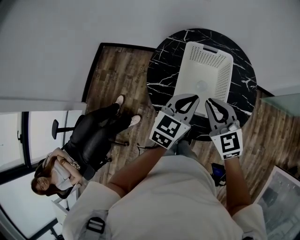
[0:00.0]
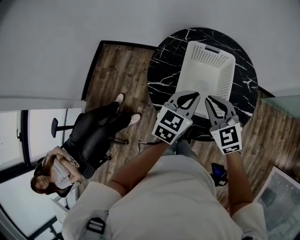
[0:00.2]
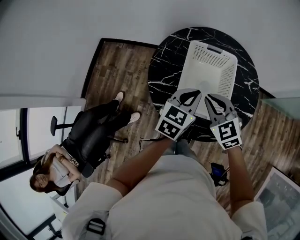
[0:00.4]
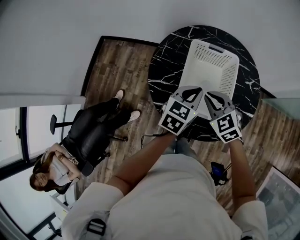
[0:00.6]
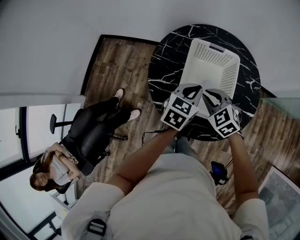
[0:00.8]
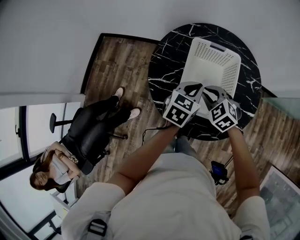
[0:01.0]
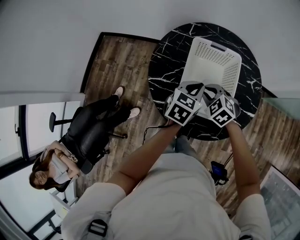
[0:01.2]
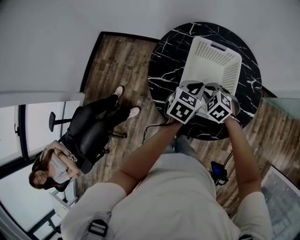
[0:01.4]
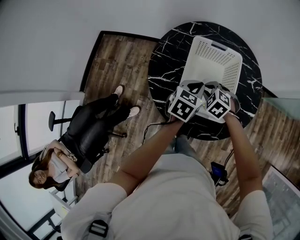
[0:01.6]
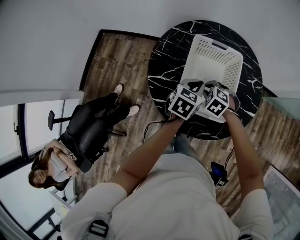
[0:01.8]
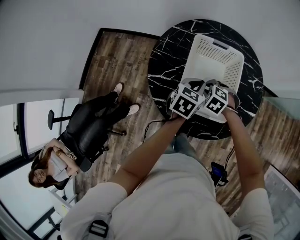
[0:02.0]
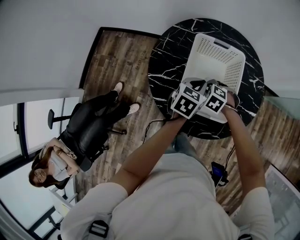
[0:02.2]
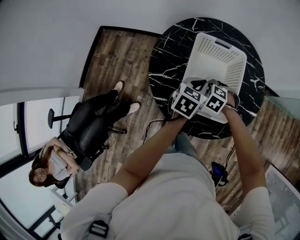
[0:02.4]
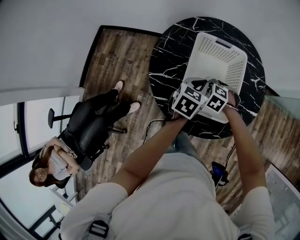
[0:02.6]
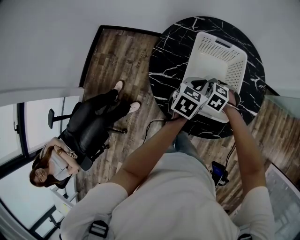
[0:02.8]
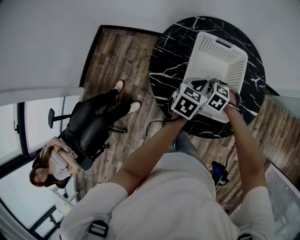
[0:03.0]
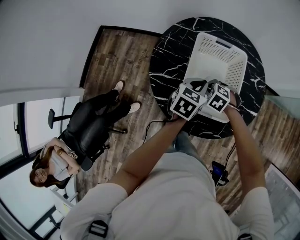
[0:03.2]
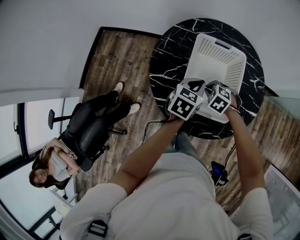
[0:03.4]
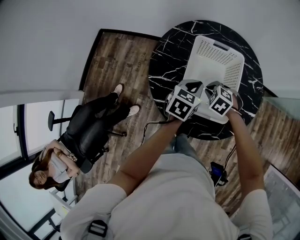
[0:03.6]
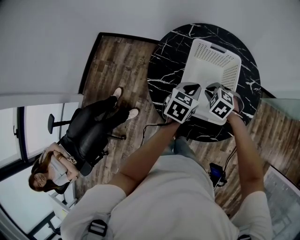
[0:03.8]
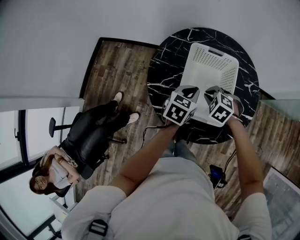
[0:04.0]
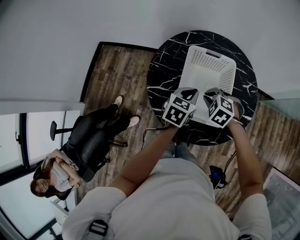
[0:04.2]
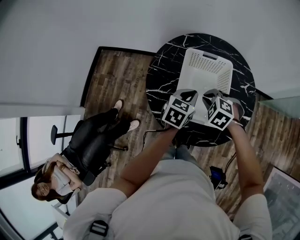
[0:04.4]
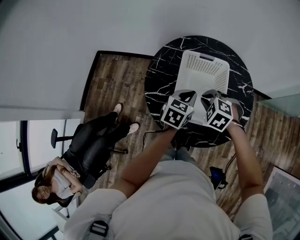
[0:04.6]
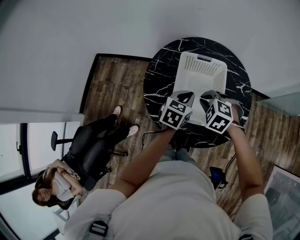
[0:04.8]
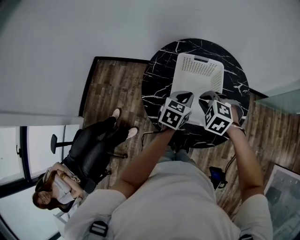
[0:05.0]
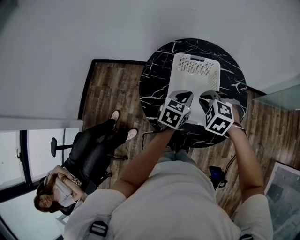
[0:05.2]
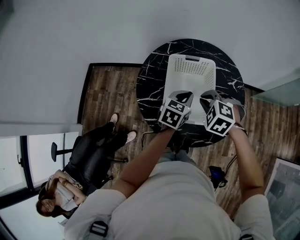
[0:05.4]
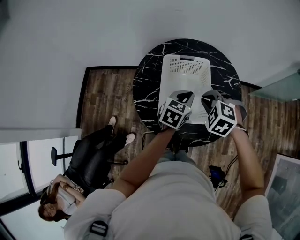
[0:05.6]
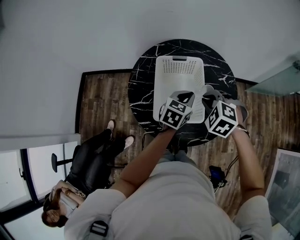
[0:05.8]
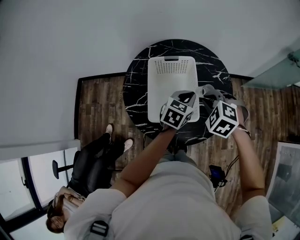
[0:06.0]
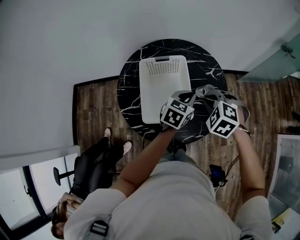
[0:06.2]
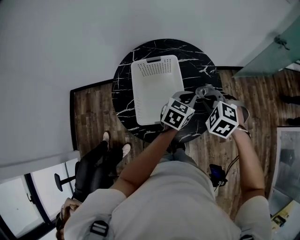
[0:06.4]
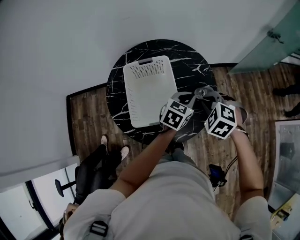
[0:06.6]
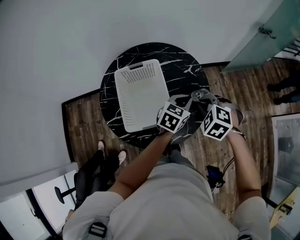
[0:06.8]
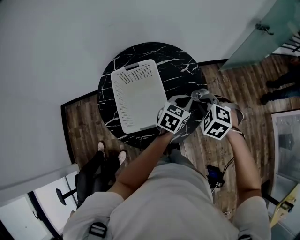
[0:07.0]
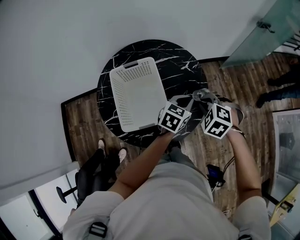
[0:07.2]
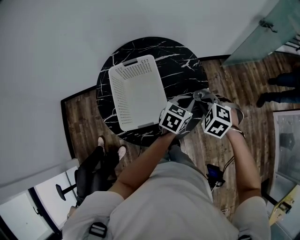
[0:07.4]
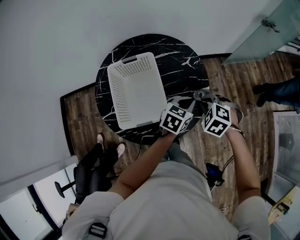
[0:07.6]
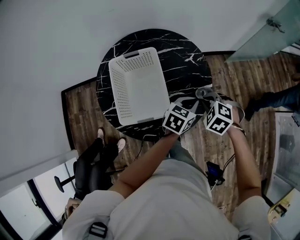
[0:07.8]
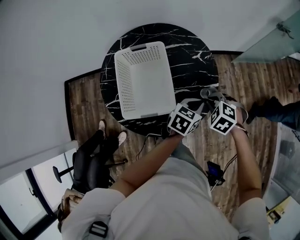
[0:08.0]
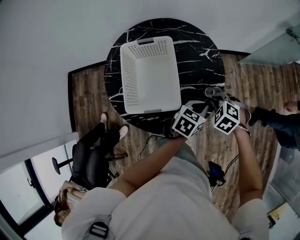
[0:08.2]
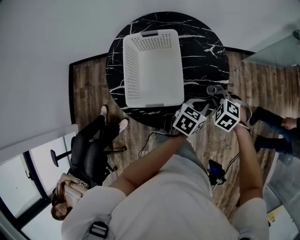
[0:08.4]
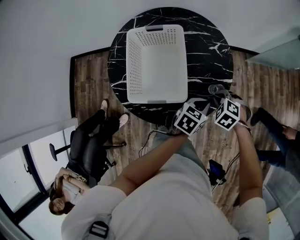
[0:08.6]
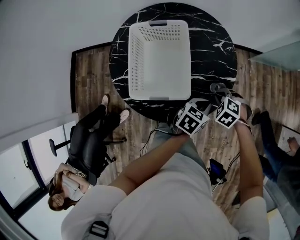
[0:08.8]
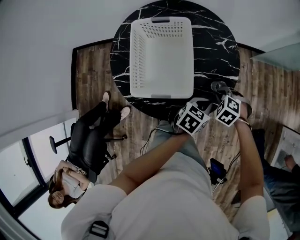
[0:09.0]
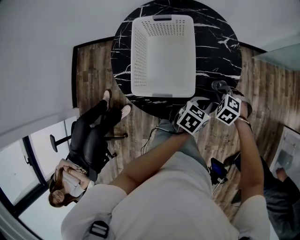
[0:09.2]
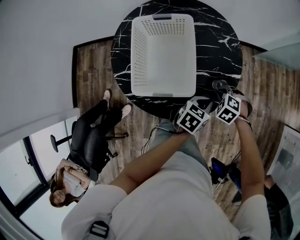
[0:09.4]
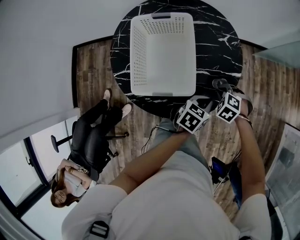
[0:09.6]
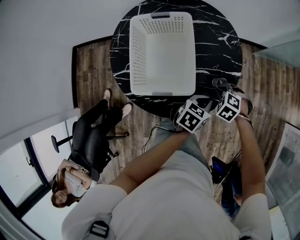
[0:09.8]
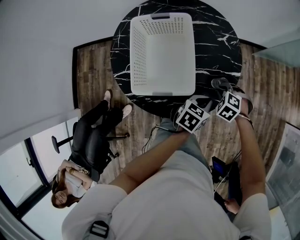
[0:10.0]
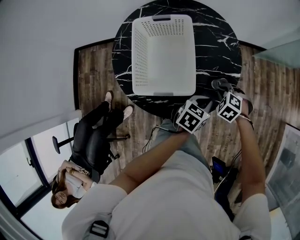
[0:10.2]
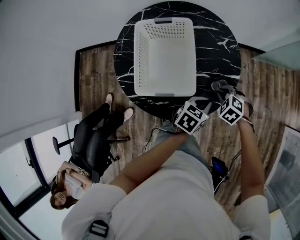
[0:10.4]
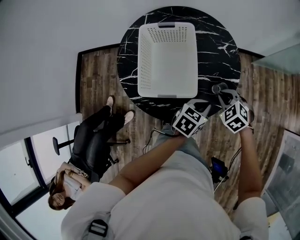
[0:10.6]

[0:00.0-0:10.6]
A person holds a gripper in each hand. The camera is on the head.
0:00.0 to 0:01.6: The left gripper goes approximately 15 cm downward and forward; the right gripper is displaced downward by some 20 cm, and angles its fingers downward, by approximately 40 degrees.
0:01.6 to 0:03.0: The right gripper shifts some 5 cm downward.
0:03.0 to 0:04.6: The right gripper moves upward, about 15 cm.
0:04.6 to 0:06.0: The right gripper shifts about 15 cm to the right and upward. Meanwhile the left gripper moves to the right, approximately 15 cm.
0:06.0 to 0:07.6: The left gripper is displaced to the right by roughly 15 cm, while the right gripper heads to the right and downward, covering some 20 cm.
0:07.6 to 0:09.0: The left gripper travels downward and backward by approximately 10 cm; the right gripper moves downward, some 15 cm.
0:09.0 to 0:10.6: The right gripper goes approximately 5 cm upward; the left gripper ends up approximately 5 cm from where it was.

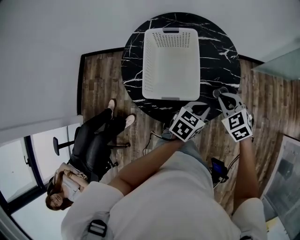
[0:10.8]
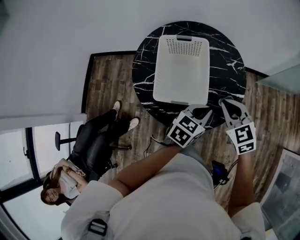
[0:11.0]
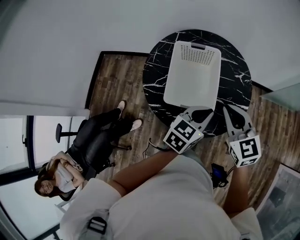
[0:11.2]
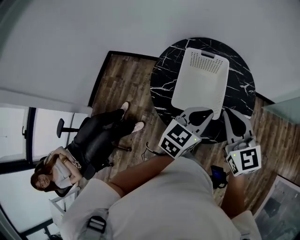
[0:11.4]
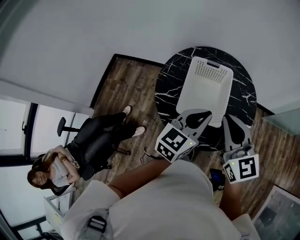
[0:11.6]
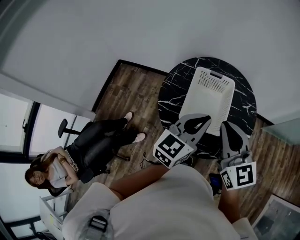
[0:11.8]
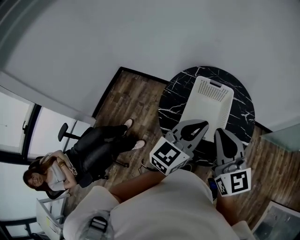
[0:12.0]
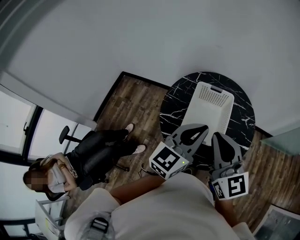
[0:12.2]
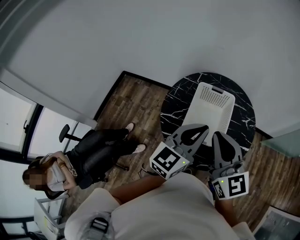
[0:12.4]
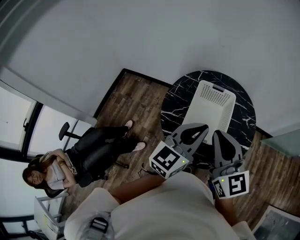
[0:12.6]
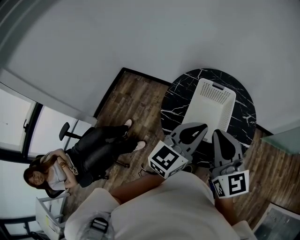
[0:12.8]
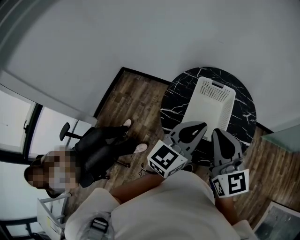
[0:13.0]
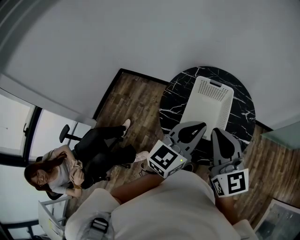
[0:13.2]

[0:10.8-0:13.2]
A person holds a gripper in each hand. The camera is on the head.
0:10.8 to 0:12.0: Both grippers travel together upward and to the left, approximately 35 cm. The right gripper angles its fingers upward, by about 50 degrees. The left gripper tips its fingers upward by roughly 30 degrees.
0:12.0 to 0:13.2: The grippers move only a little.

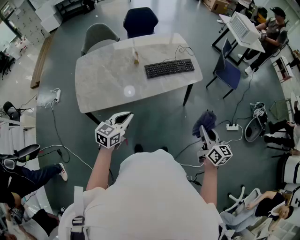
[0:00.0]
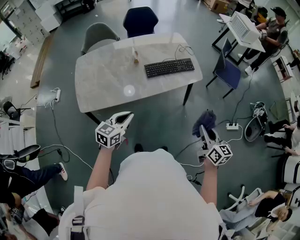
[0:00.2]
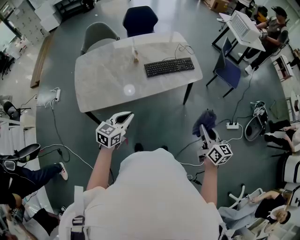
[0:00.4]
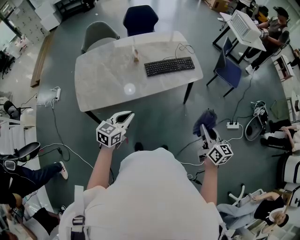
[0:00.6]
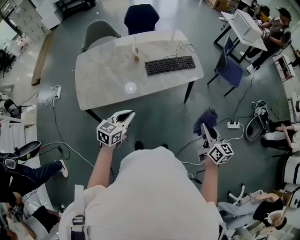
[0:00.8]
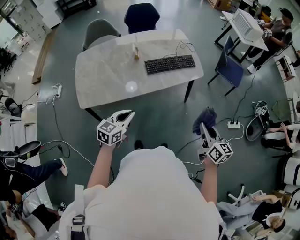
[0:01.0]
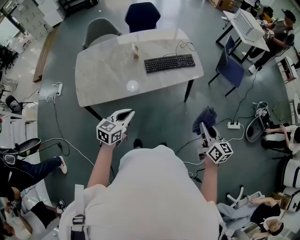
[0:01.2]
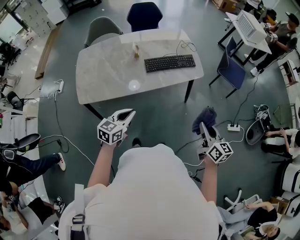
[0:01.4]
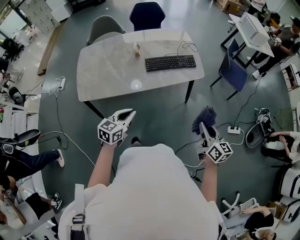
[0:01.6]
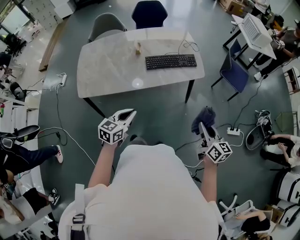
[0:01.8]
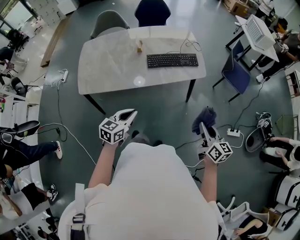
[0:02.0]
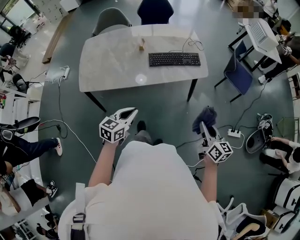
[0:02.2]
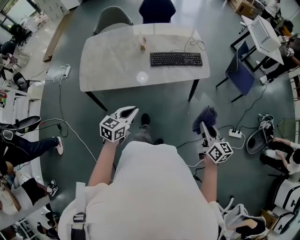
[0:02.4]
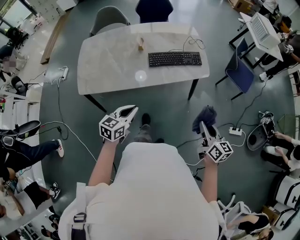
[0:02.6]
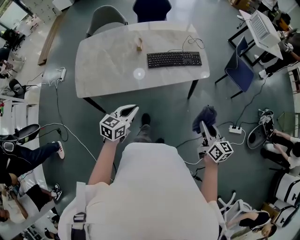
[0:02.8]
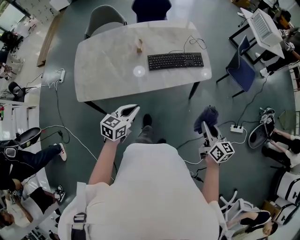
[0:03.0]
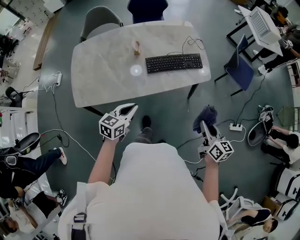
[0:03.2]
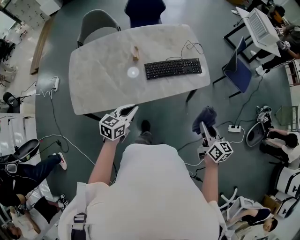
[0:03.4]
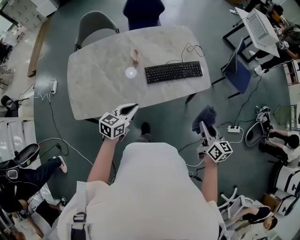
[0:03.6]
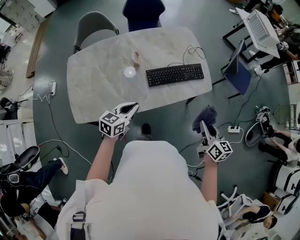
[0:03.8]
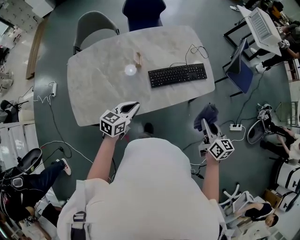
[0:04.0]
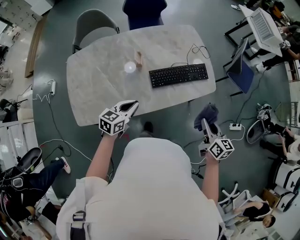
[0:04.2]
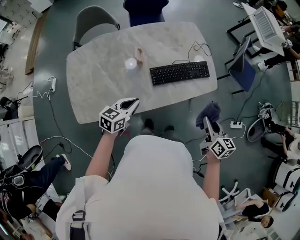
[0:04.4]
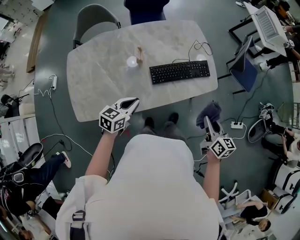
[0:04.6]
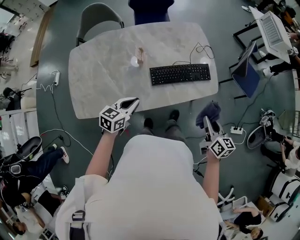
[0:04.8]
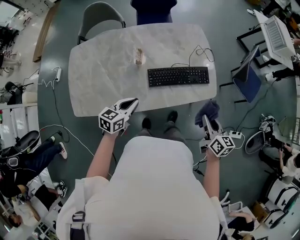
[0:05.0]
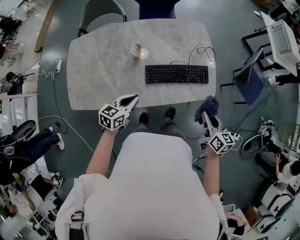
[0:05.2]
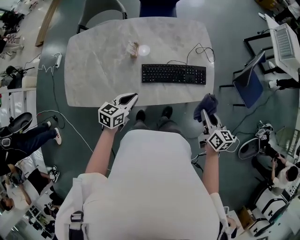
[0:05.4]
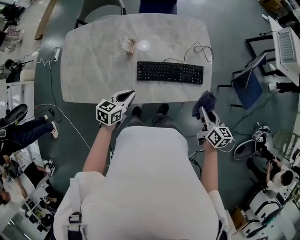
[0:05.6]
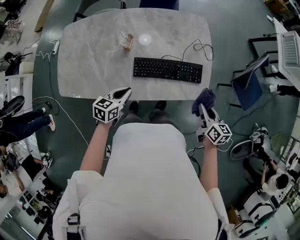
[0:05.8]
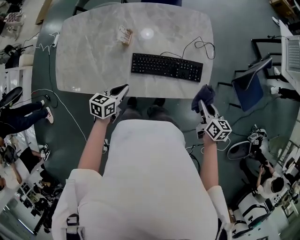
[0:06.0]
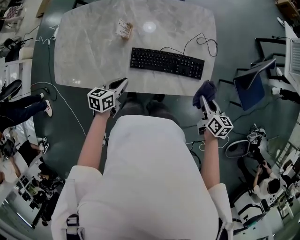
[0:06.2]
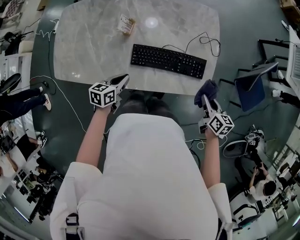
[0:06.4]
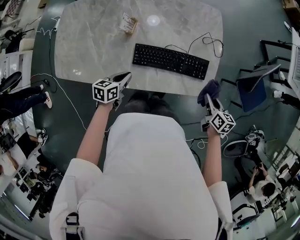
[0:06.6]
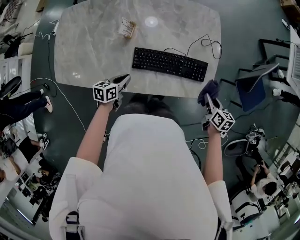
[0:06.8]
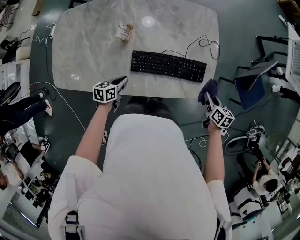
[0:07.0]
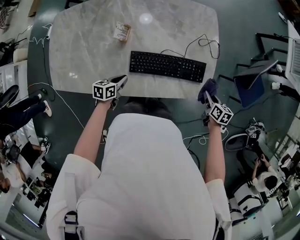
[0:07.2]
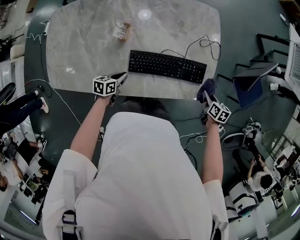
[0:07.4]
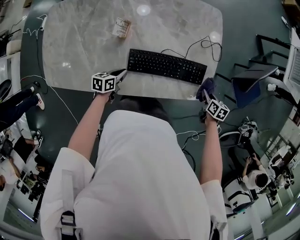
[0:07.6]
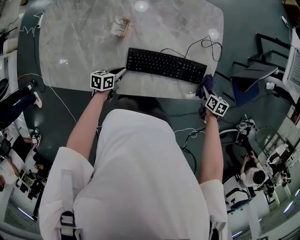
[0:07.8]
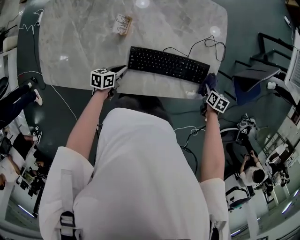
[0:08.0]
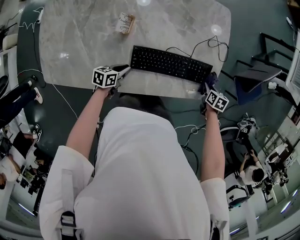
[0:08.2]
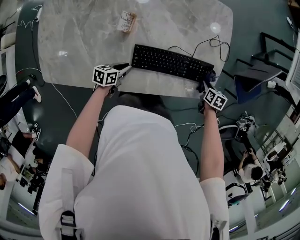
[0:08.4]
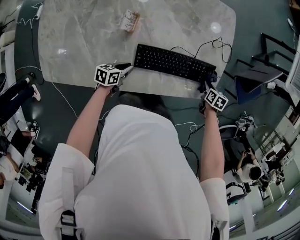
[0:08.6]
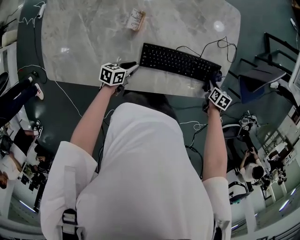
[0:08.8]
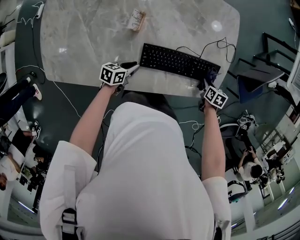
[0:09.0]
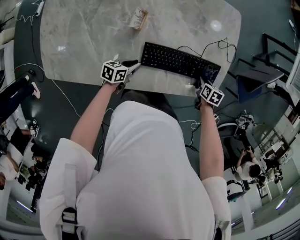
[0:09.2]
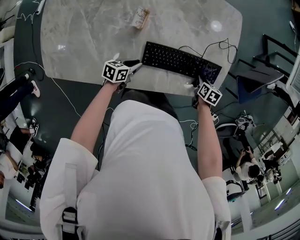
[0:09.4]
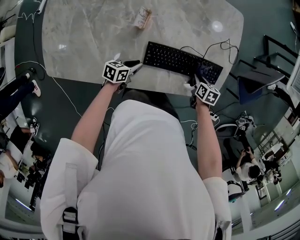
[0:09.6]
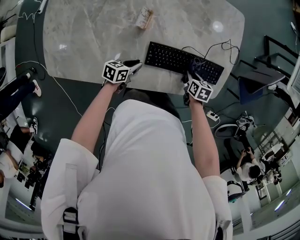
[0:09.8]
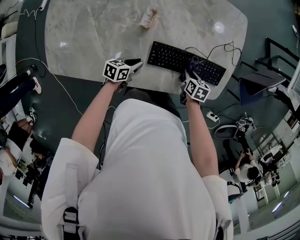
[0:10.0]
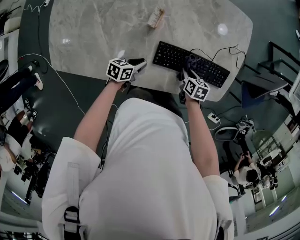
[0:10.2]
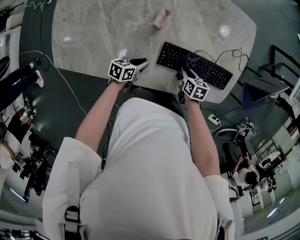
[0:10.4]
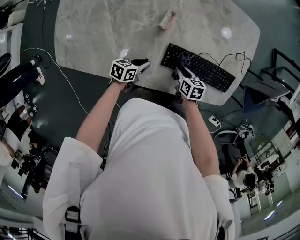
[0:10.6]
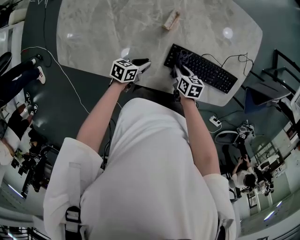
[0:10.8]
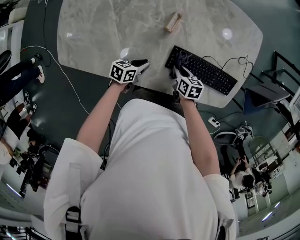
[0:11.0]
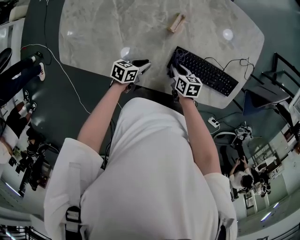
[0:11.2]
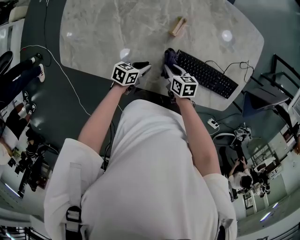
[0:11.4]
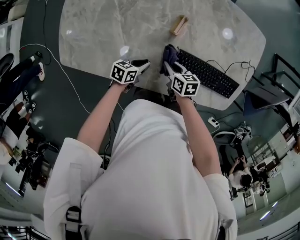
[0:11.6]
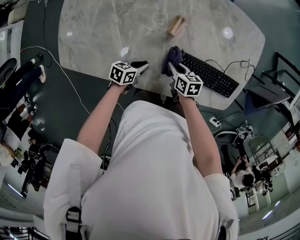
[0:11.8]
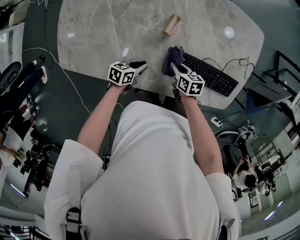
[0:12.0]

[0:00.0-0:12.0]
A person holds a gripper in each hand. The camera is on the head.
0:00.0 to 0:01.6: The right gripper changes place by roughly 5 cm. Meanwhile the left gripper moves to the right, about 5 cm.
0:01.6 to 0:03.0: The two grippers go some 10 cm forward.
0:03.0 to 0:04.4: The grippers both shift forward and to the left by some 20 cm.
0:04.4 to 0:06.0: The right gripper travels forward, to the right and downward by about 25 cm, and swivels roughly 20 degrees, while the left gripper heads to the right, downward and forward, covering about 15 cm, and rotates about 30 degrees.
0:06.0 to 0:07.6: The right gripper moves downward and forward, some 20 cm, and swivels some 30 degrees. The left gripper moves downward, approximately 15 cm, and swivels approximately 20 degrees.
0:07.6 to 0:09.0: The right gripper travels to the left by about 10 cm.
0:09.0 to 0:10.4: The right gripper is displaced to the left by roughly 25 cm.
0:10.4 to 0:12.0: The right gripper moves about 10 cm.
